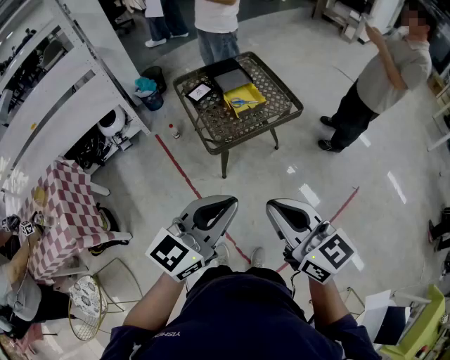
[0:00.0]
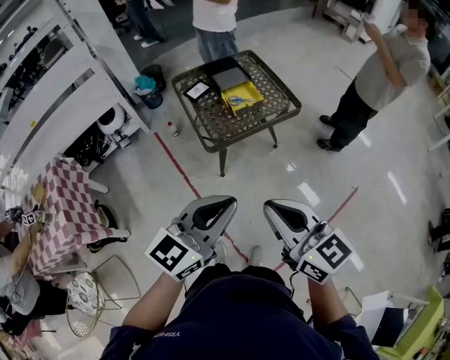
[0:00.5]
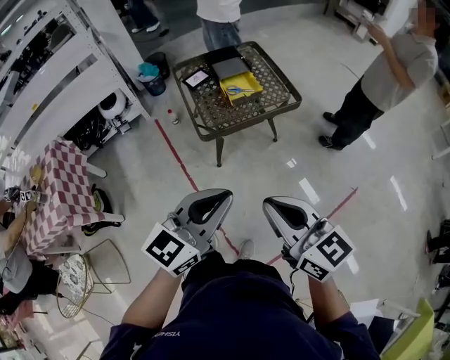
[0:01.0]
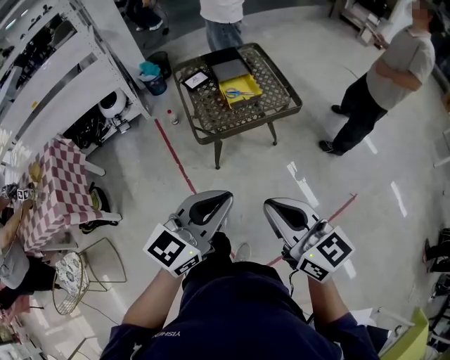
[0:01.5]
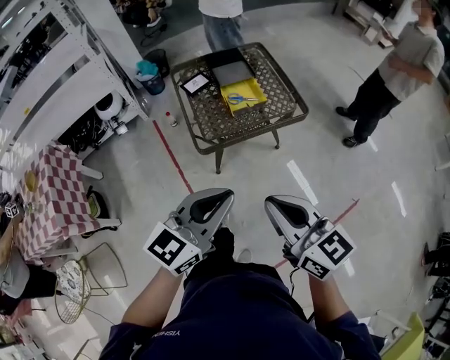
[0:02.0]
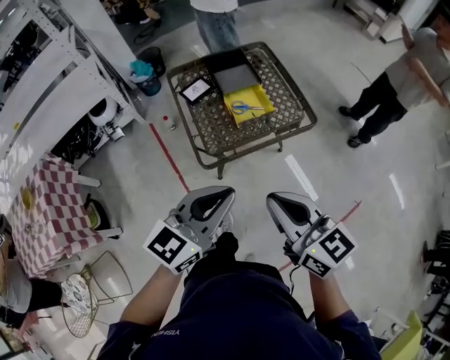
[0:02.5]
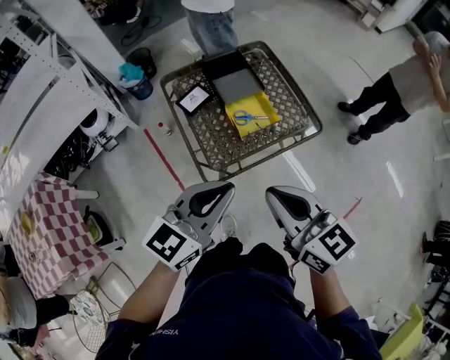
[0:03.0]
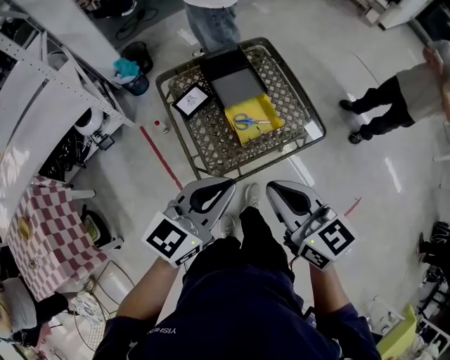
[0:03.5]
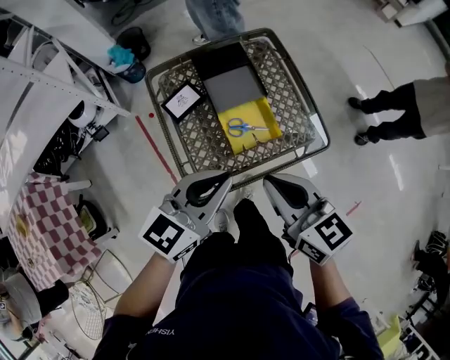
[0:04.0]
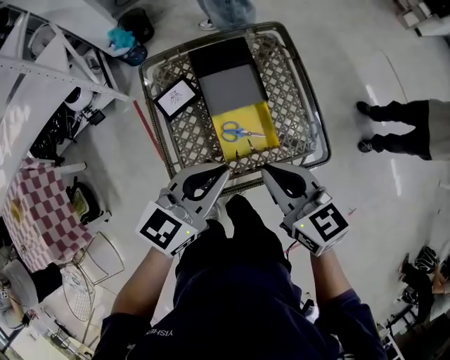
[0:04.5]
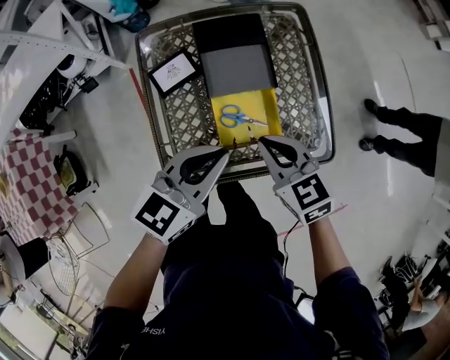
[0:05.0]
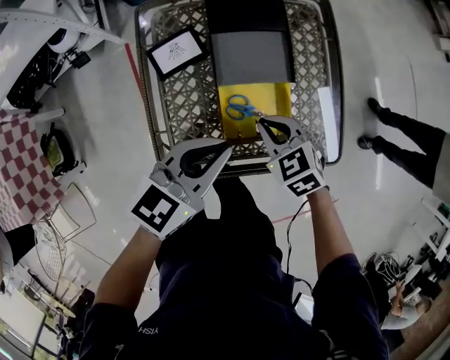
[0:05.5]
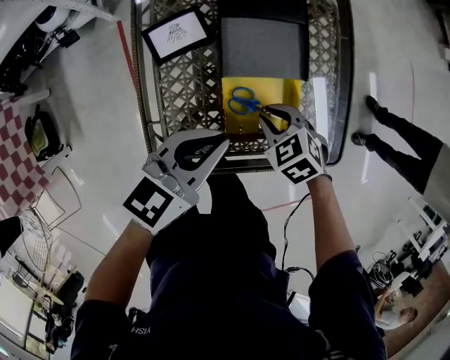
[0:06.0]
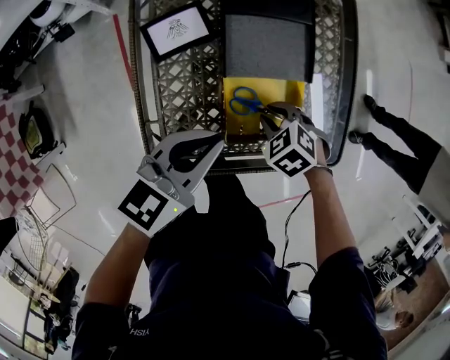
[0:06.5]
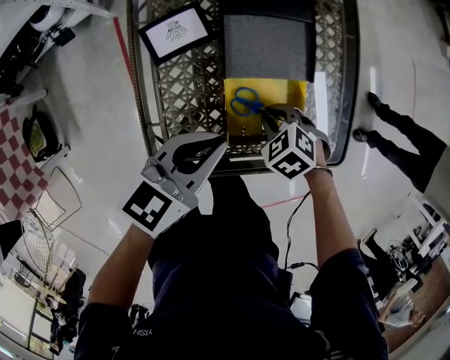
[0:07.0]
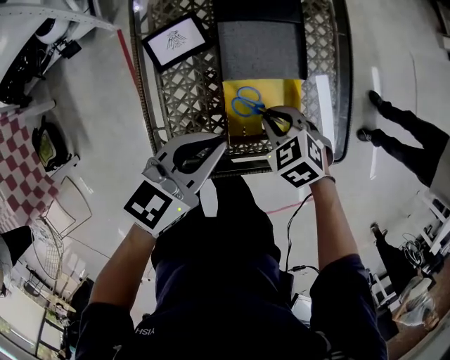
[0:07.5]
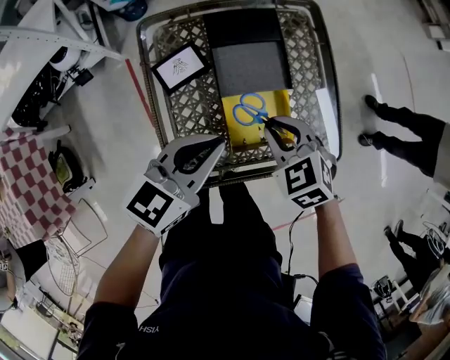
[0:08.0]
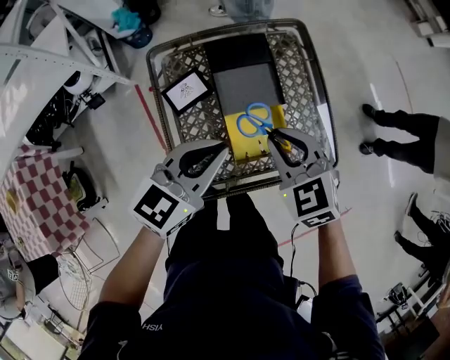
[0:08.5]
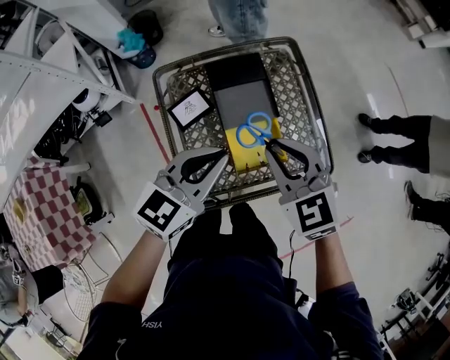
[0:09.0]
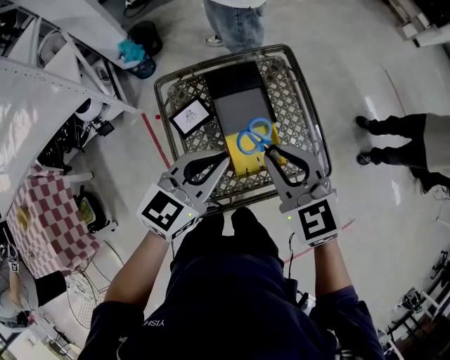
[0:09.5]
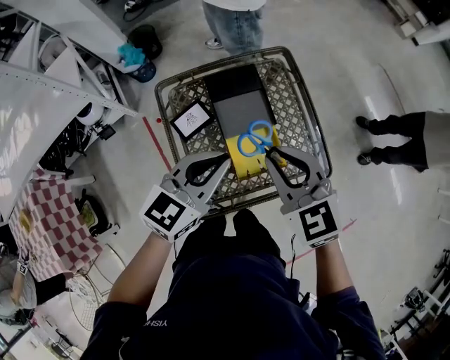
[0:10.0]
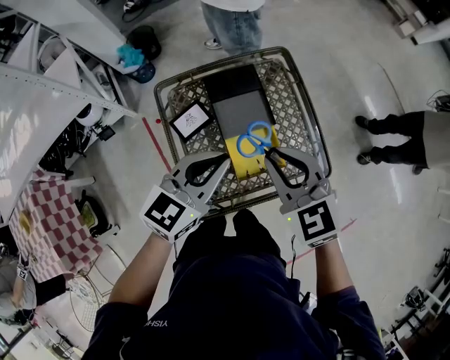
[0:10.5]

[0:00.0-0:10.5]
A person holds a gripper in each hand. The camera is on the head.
0:00.0 to 0:02.0: Both grippers move forward, to the right and downward, approximately 15 cm.
0:02.0 to 0:04.0: The two grippers go roughly 40 cm forward.
0:04.0 to 0:06.5: The left gripper moves downward, roughly 20 cm, and changes its angle by some 20 degrees; the right gripper travels downward by about 35 cm, points its fingers roughly 60 degrees further downward, and opens up.
0:06.5 to 0:08.5: The left gripper travels upward by approximately 15 cm. The right gripper goes approximately 25 cm upward, and tilts its fingers approximately 40 degrees upward.
0:08.5 to 0:10.5: The right gripper moves upward, approximately 10 cm. The left gripper travels upward by approximately 5 cm.

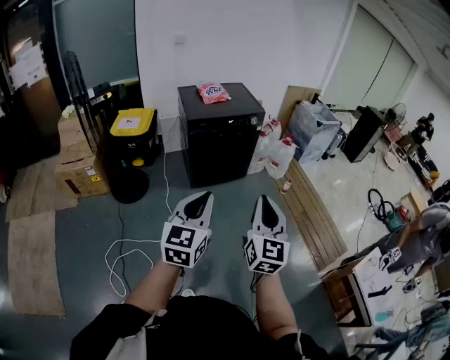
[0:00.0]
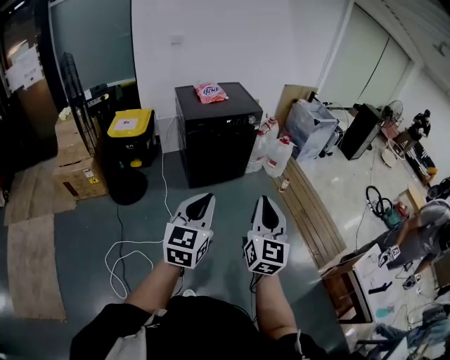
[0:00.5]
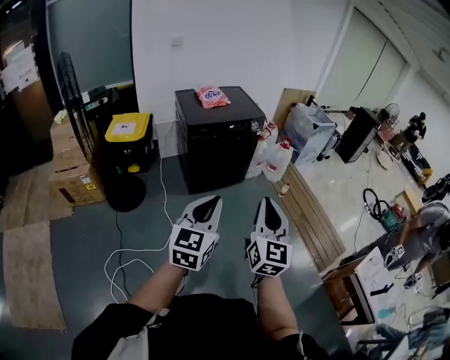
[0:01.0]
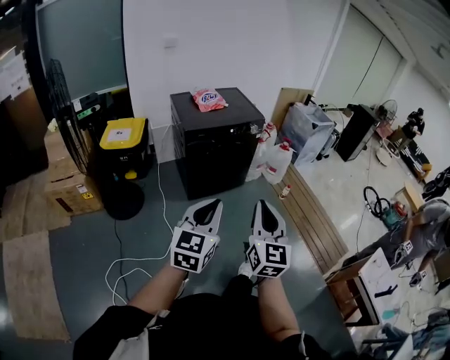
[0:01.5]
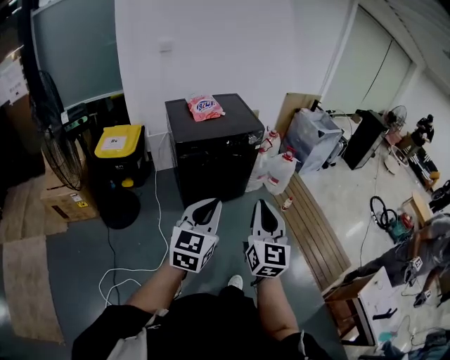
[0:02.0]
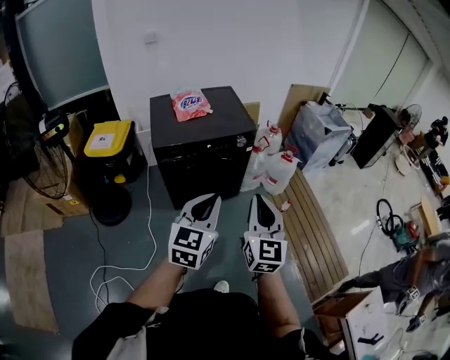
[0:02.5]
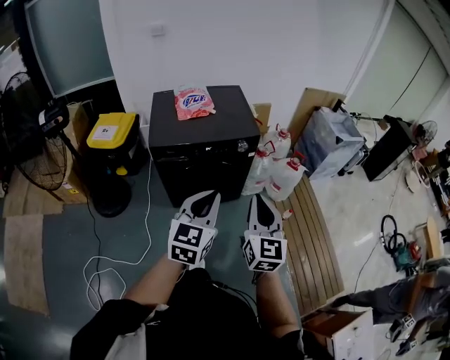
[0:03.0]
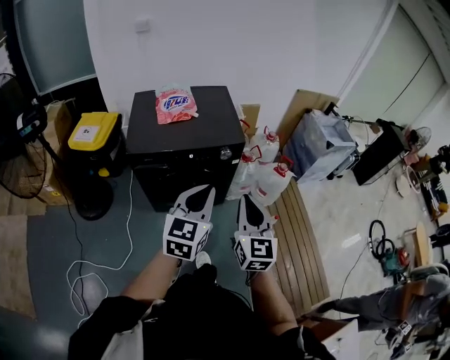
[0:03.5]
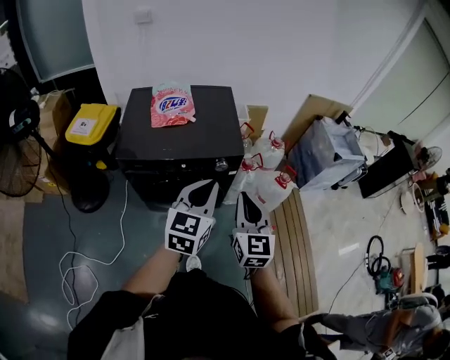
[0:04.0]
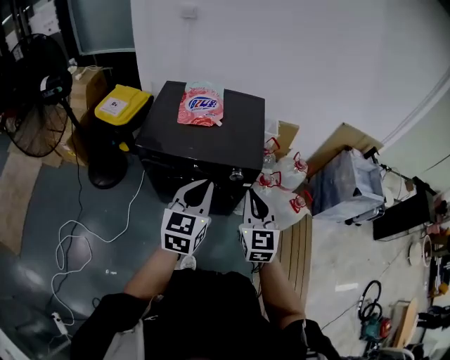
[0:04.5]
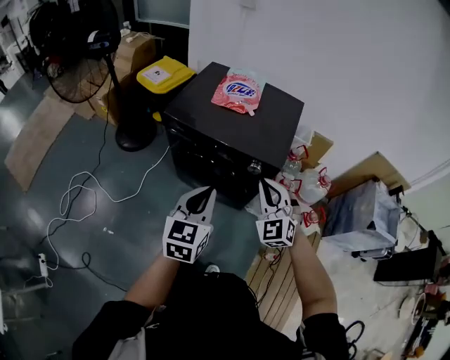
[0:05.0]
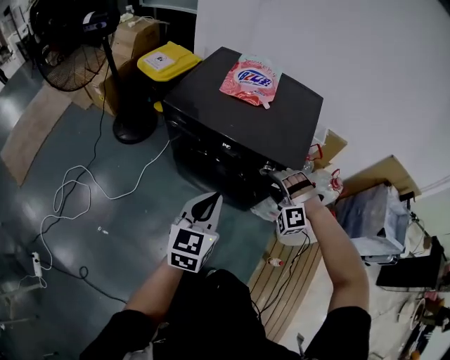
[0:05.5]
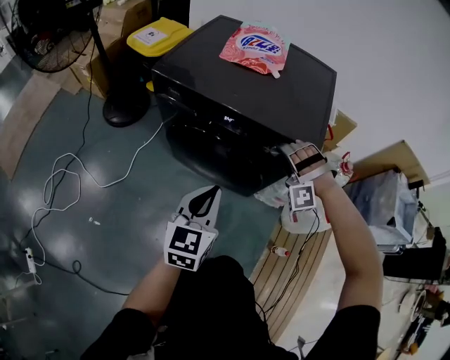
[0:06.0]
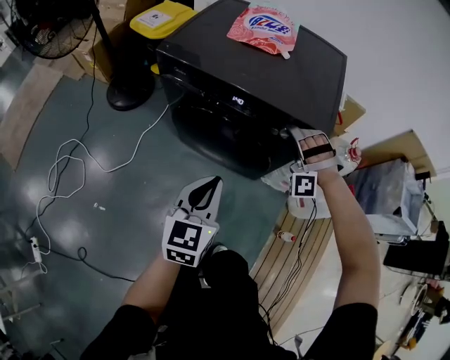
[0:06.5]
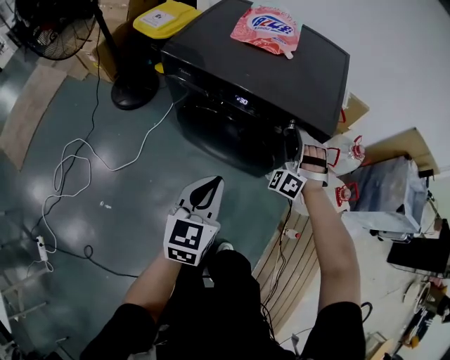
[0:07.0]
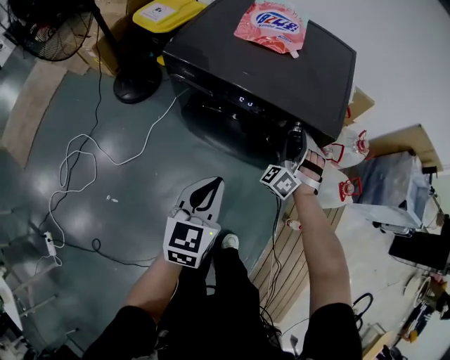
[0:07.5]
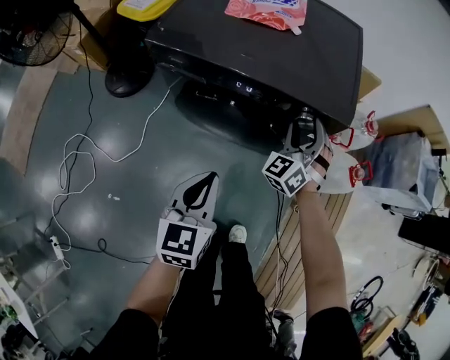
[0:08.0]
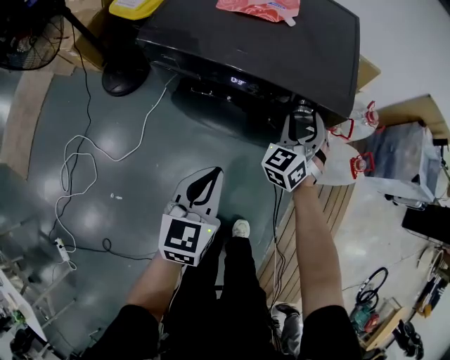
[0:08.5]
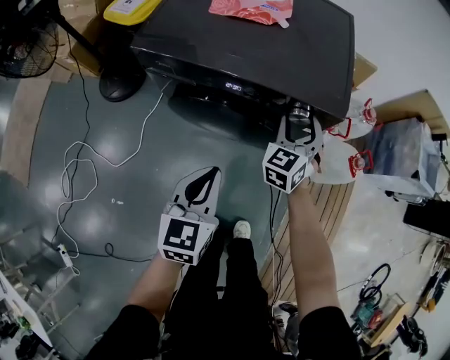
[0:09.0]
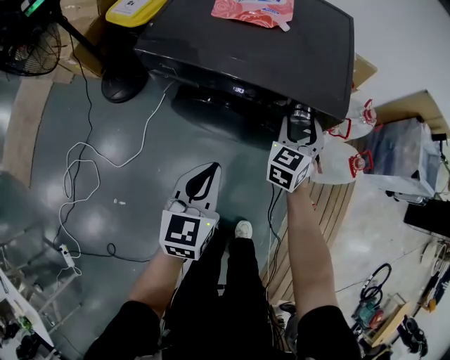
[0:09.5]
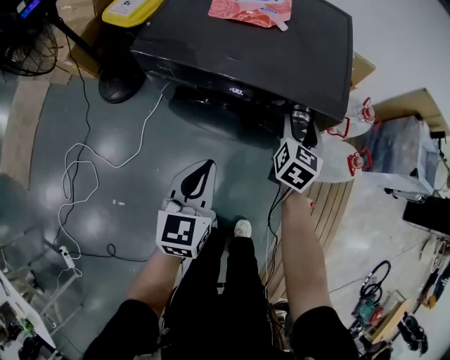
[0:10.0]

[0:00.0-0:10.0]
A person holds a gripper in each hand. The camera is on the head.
0:00.0 to 0:02.0: The two grippers go roughly 20 cm forward.
0:02.0 to 0:04.0: The pair of grippers is taken forward and to the right, roughly 50 cm. The right gripper rotates approximately 20 degrees.
0:04.0 to 0:06.0: Both grippers move downward, roughly 30 cm. The right gripper twists roughly 110 degrees counterclockwise, seen from behind, and opens its fingers. Meanwhile the left gripper rotates approximately 30 degrees.
0:06.0 to 0:08.0: The right gripper rolls clockwise, seen from behind, by roughly 70 degrees, while the left gripper shifts by about 5 cm.
0:08.0 to 0:10.0: The right gripper twists approximately 60 degrees clockwise, seen from behind.

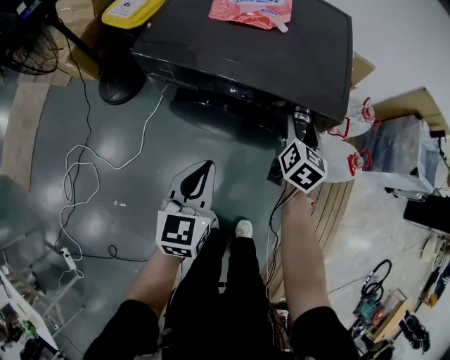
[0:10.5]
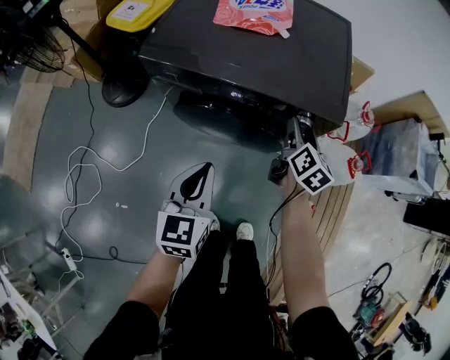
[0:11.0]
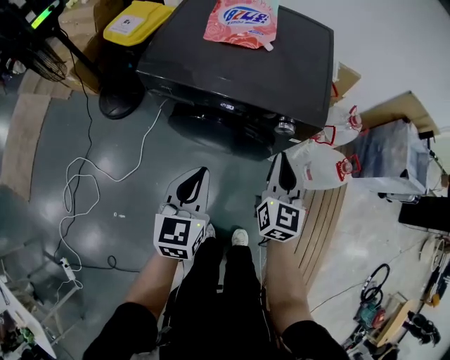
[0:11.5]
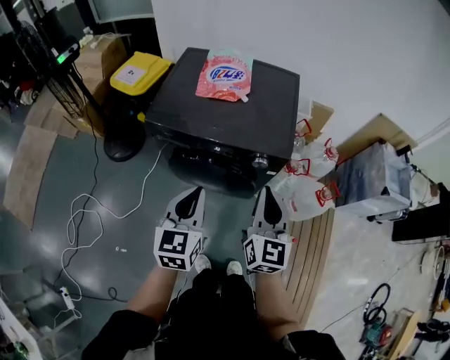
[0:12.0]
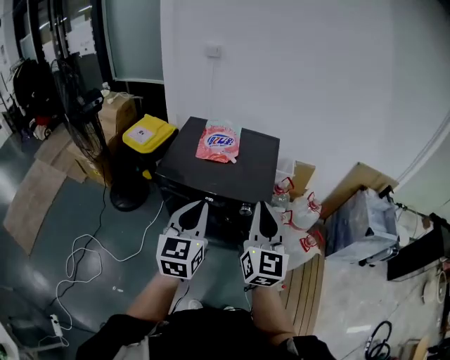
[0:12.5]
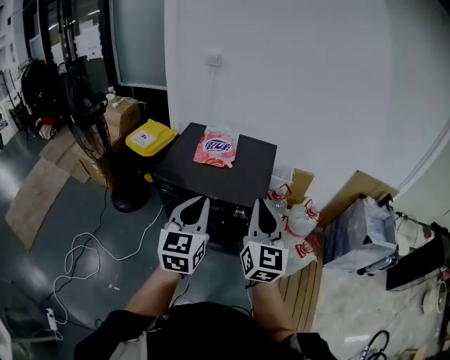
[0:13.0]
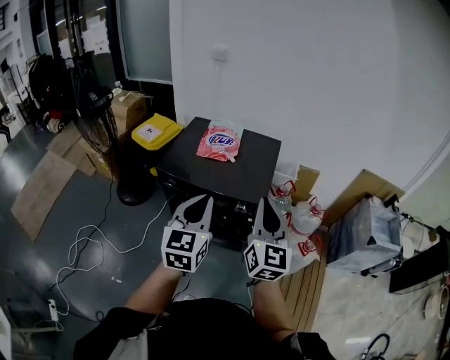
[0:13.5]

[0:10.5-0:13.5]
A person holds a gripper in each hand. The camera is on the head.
0:10.5 to 0:12.0: The left gripper shifts roughly 15 cm upward. Meanwhile the right gripper moves upward and backward, approximately 30 cm, turns by about 30 degrees, and closes.
0:12.0 to 0:13.5: Both grippers move upward and to the right, roughly 20 cm.

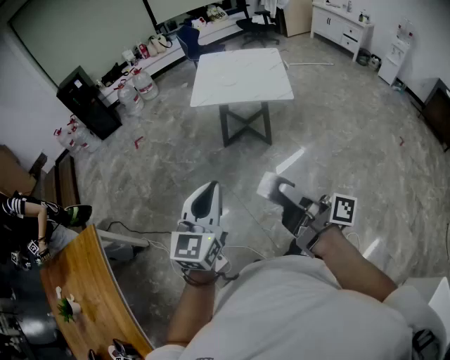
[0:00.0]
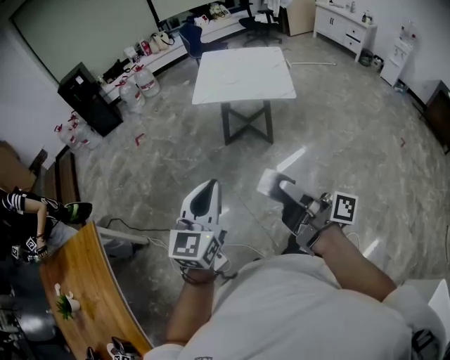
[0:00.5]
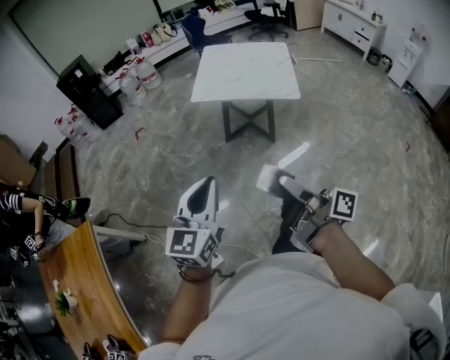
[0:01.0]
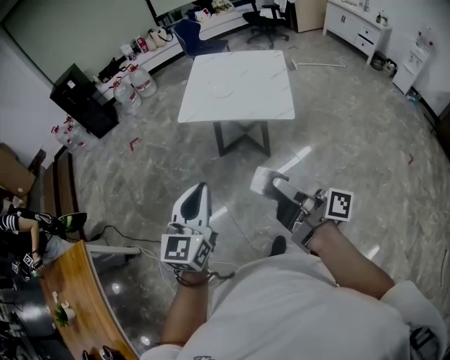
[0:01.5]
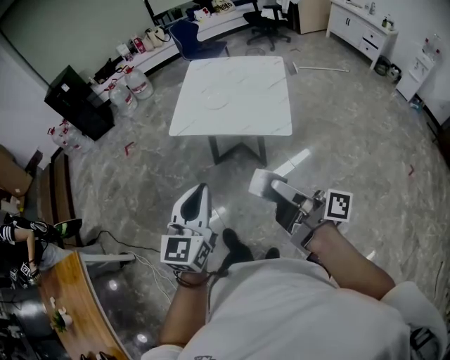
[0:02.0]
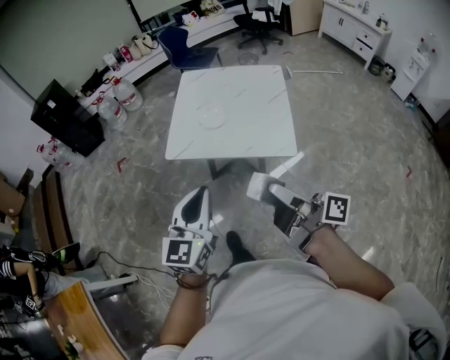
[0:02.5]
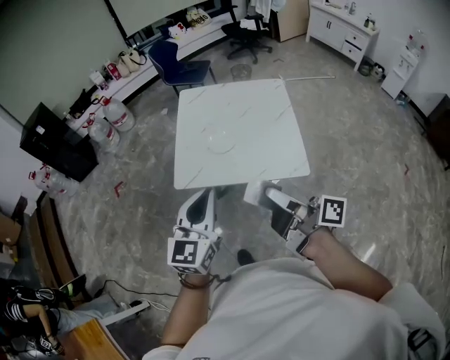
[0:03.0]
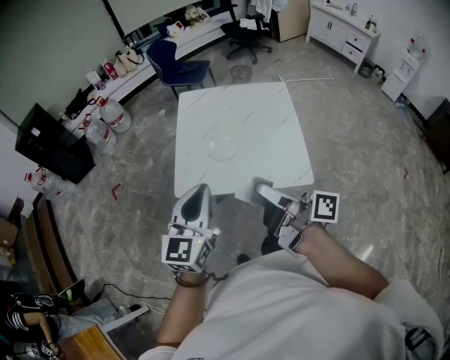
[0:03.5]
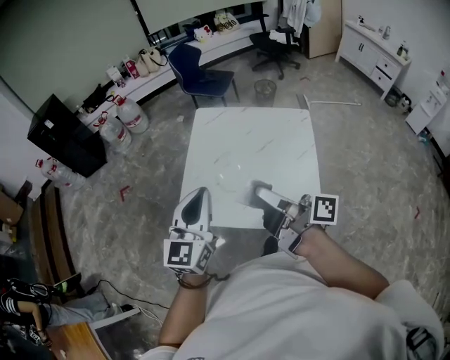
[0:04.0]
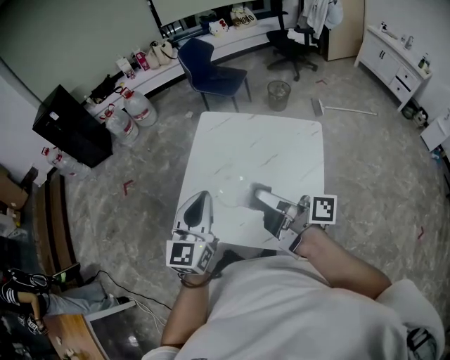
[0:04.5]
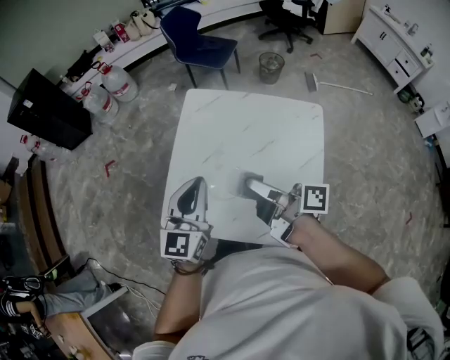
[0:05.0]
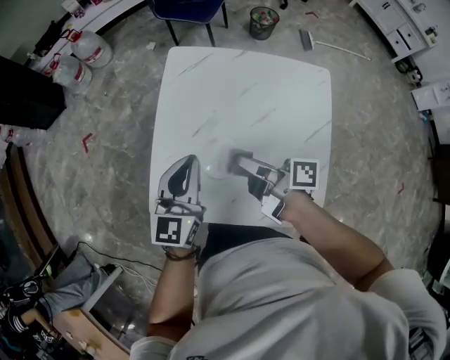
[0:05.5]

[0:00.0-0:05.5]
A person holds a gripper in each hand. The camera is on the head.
0:00.0 to 0:02.0: Both grippers travel together forward and to the right, roughly 40 cm.
0:02.0 to 0:03.5: The grippers both shift forward by roughly 35 cm.
0:03.5 to 0:05.5: The grippers both shift forward and downward by about 40 cm. The right gripper rotates some 20 degrees.
